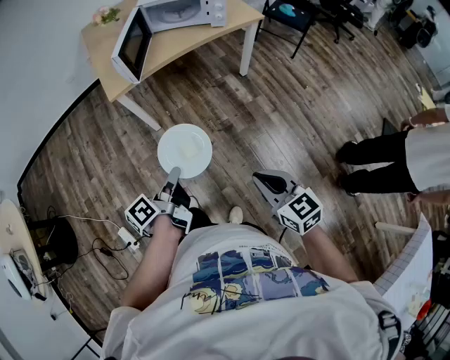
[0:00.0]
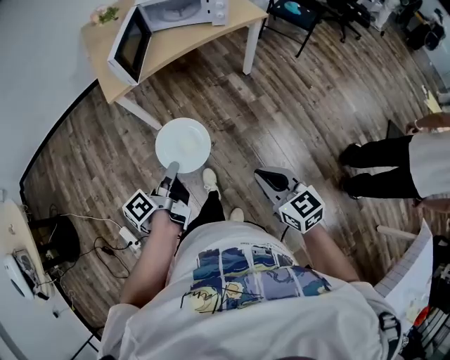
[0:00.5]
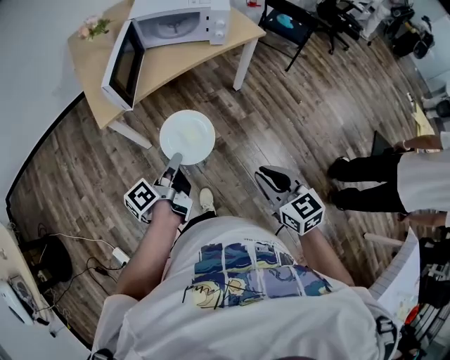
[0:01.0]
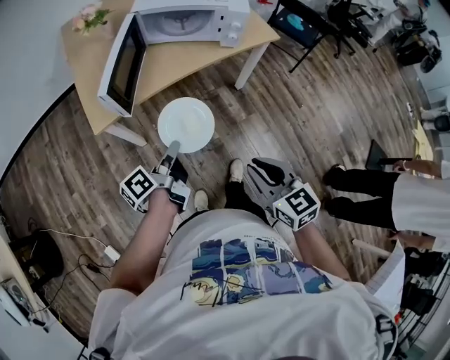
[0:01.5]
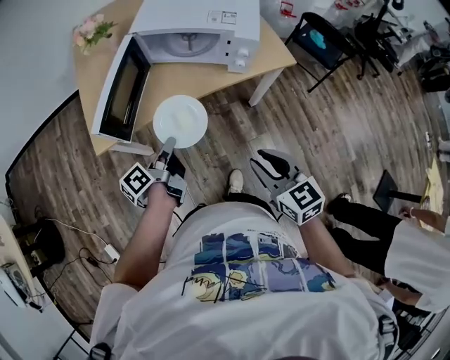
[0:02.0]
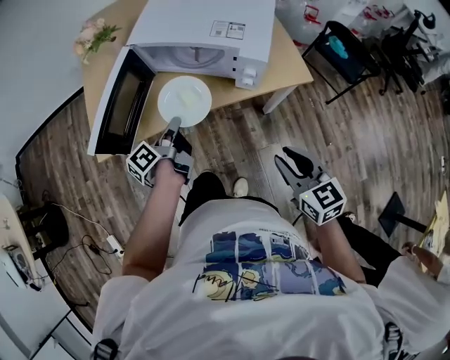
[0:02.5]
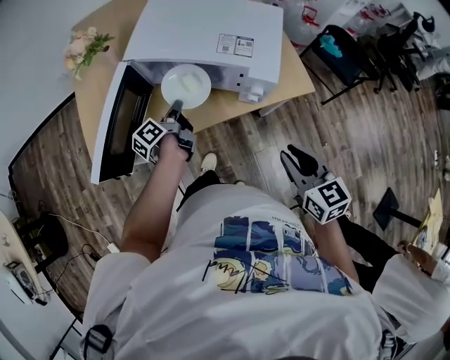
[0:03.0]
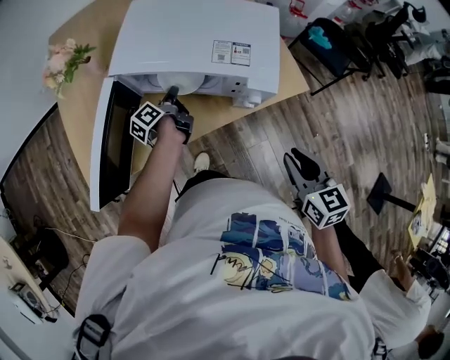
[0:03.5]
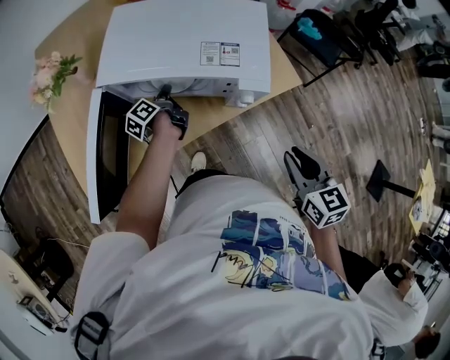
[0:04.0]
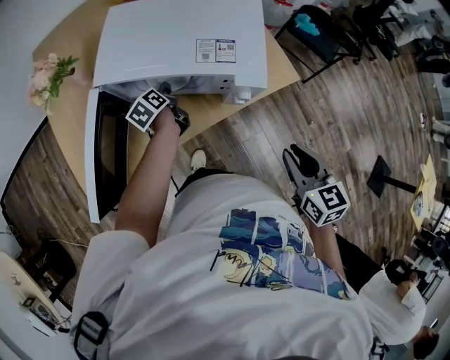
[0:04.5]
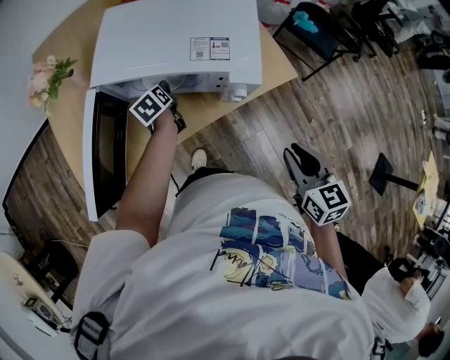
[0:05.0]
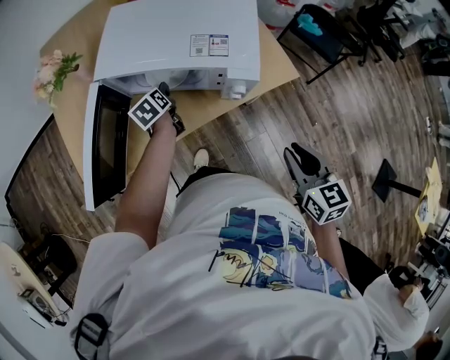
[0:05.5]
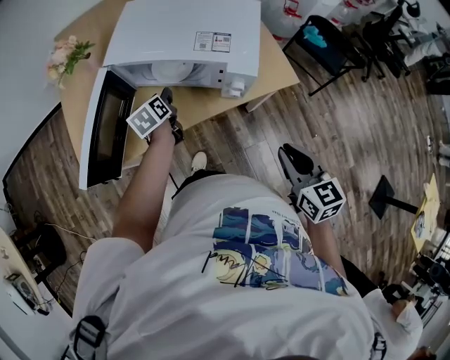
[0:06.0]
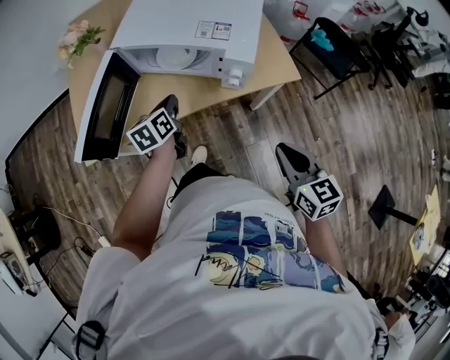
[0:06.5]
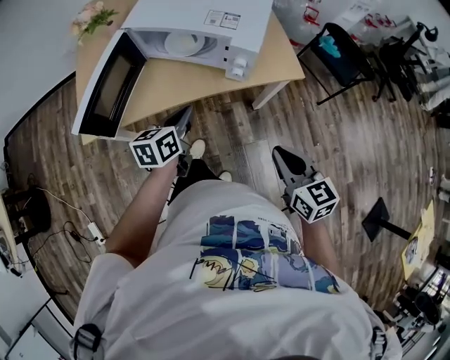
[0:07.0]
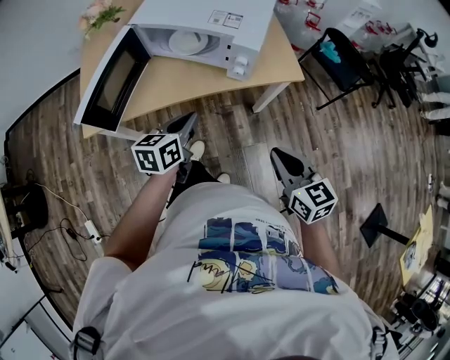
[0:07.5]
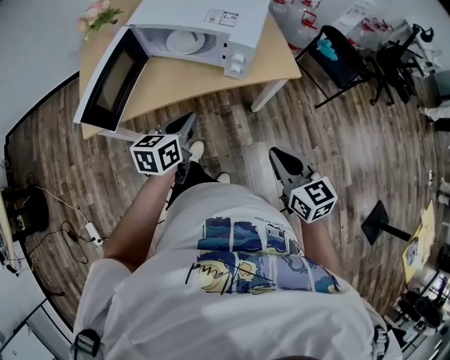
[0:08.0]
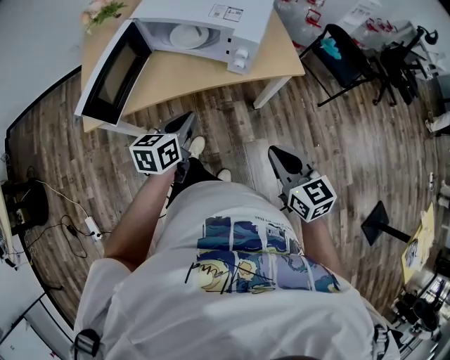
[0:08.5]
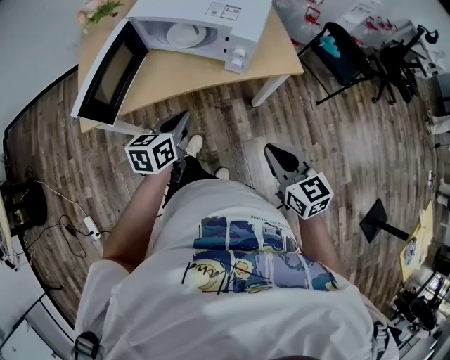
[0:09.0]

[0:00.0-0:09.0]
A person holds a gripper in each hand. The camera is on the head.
0:00.0 to 0:02.0: Both grippers are carried forward, approximately 50 cm. The right gripper opens up.
0:02.0 to 0:04.5: The right gripper travels forward and to the right by about 25 cm, and changes its angle by some 20 degrees, while the left gripper travels forward by roughly 40 cm, and turns by about 40 degrees.
0:04.5 to 0:07.0: The right gripper is displaced backward by some 10 cm. Meanwhile the left gripper shifts approximately 30 cm backward and upward, changes its angle by roughly 30 degrees, and opens and closes again.
0:07.0 to 0:09.0: The left gripper goes approximately 5 cm backward.

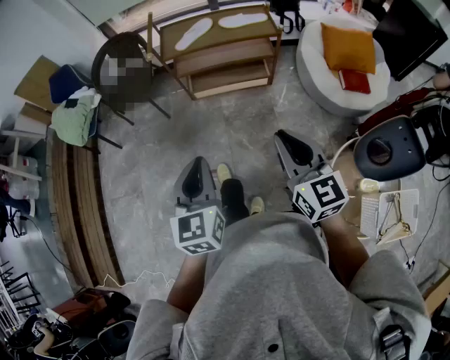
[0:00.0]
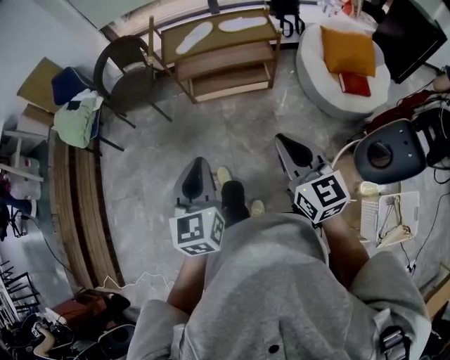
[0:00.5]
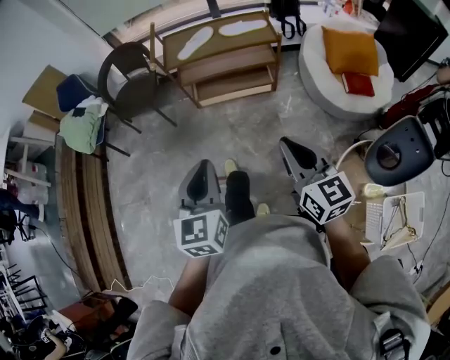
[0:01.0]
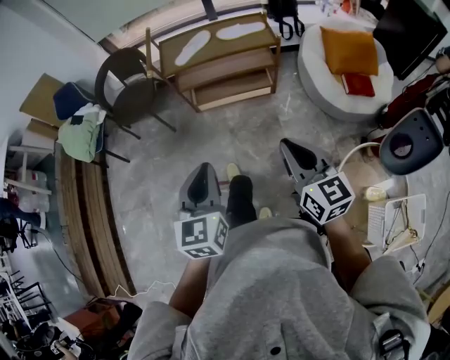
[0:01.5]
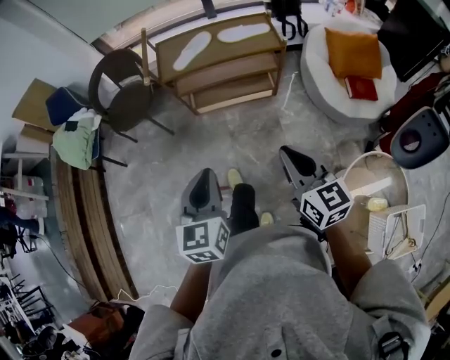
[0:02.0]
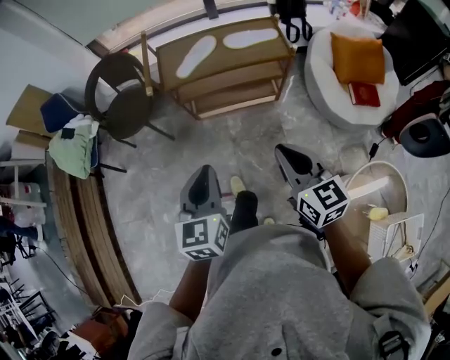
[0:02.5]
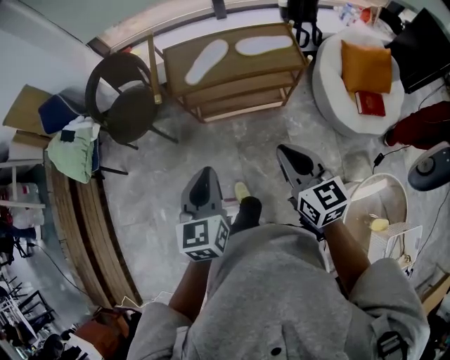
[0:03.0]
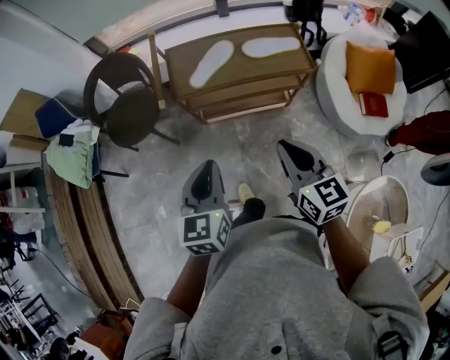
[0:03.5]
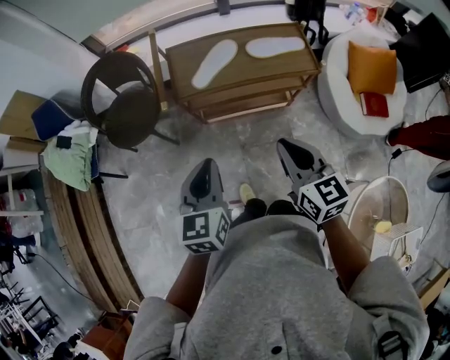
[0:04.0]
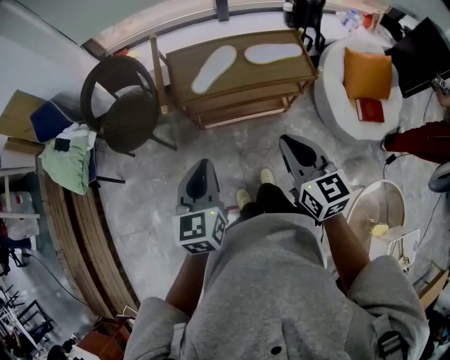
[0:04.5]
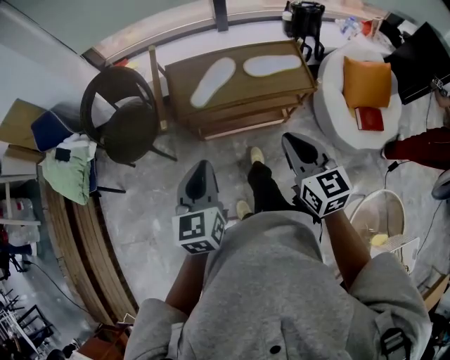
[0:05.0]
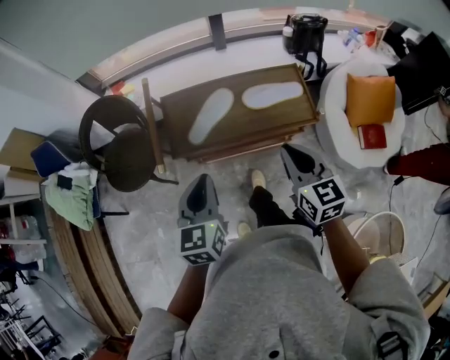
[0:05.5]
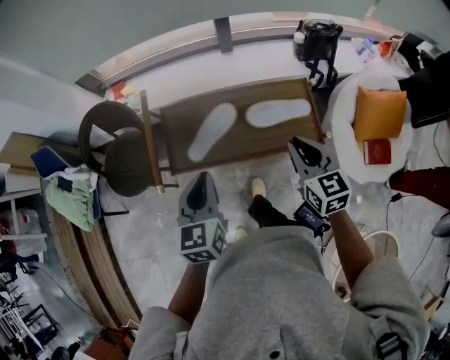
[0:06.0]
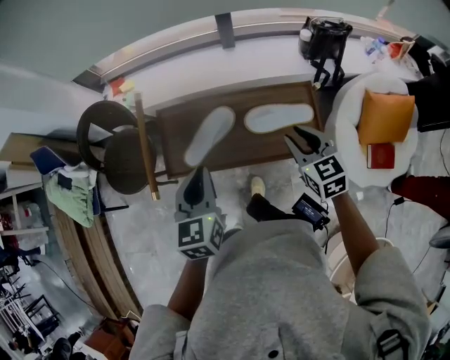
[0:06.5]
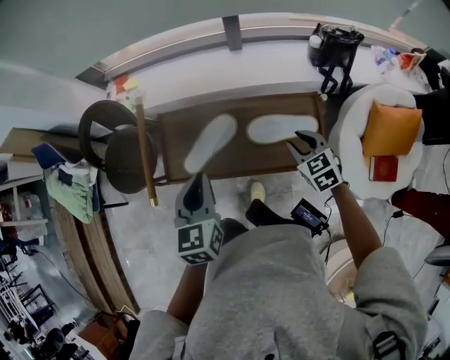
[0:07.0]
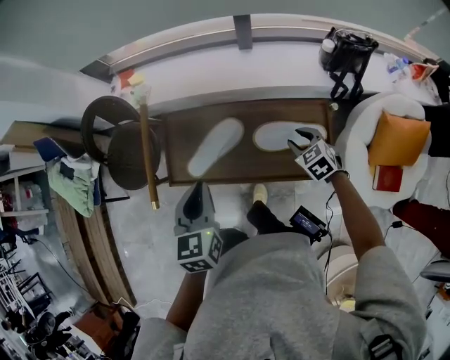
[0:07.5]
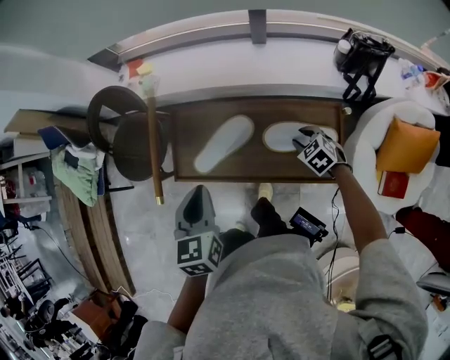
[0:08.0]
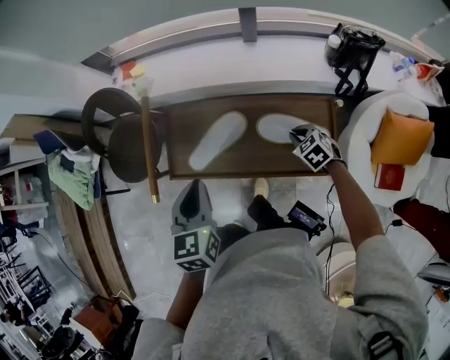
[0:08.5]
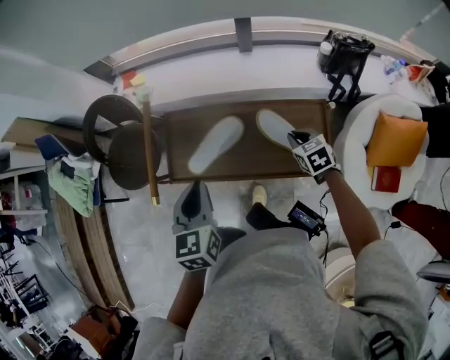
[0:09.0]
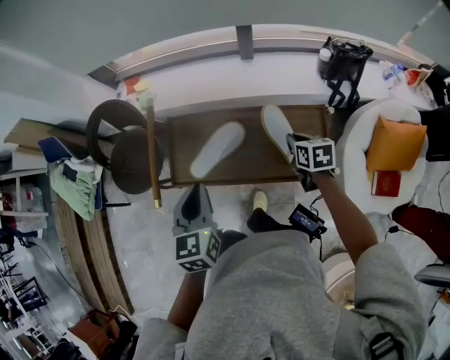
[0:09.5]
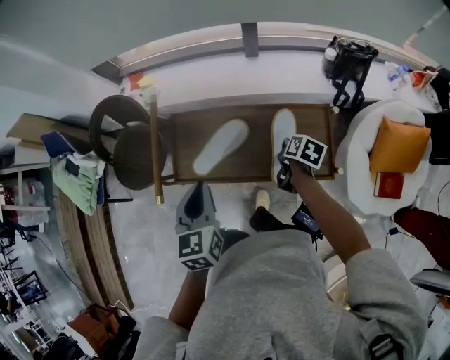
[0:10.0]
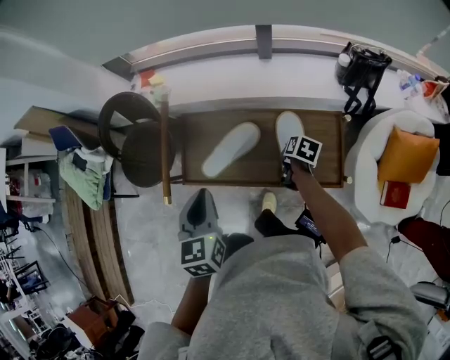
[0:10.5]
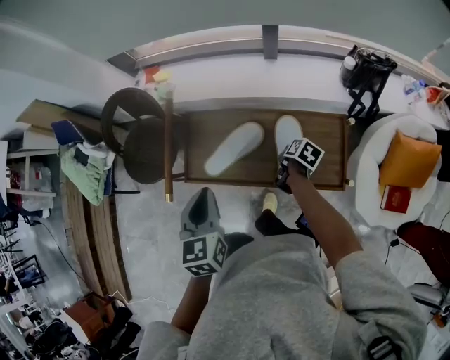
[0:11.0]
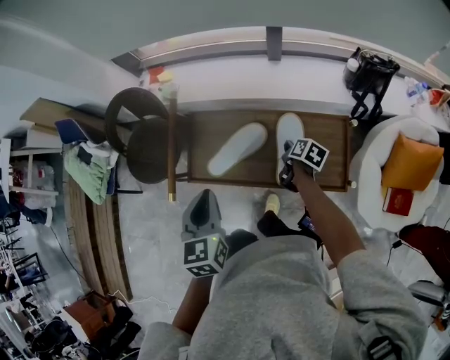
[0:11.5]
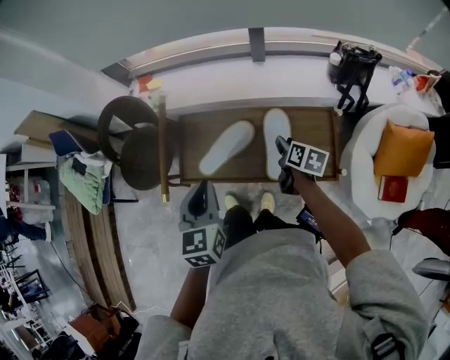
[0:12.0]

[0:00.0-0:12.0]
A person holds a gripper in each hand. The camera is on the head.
0:00.0 to 0:02.0: The grippers both shift forward by about 10 cm.
0:02.0 to 0:04.0: The grippers both shift forward by approximately 25 cm.
0:04.0 to 0:06.0: The right gripper travels forward and to the right by about 30 cm. The left gripper heads forward, covering approximately 25 cm.
0:06.0 to 0:08.0: The right gripper moves downward and forward, some 30 cm, tips its fingers downward by about 40 degrees, and opens, while the left gripper is displaced forward by about 5 cm.
0:08.0 to 0:10.0: The right gripper shifts some 5 cm upward, rolls clockwise, seen from behind, by about 80 degrees, and closes its fingers.
0:10.0 to 0:12.0: The right gripper ends up roughly 5 cm from where it was, and opens up.

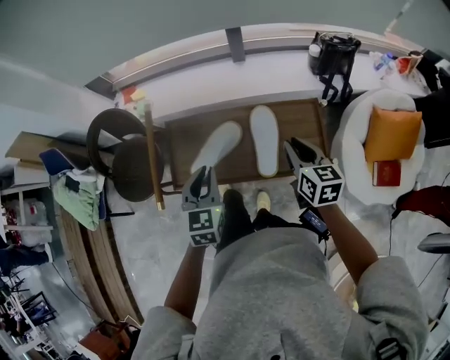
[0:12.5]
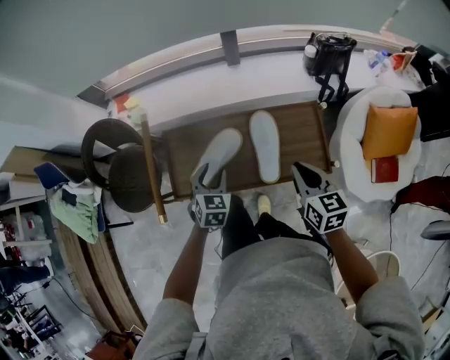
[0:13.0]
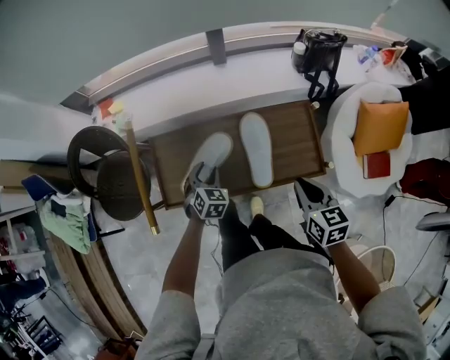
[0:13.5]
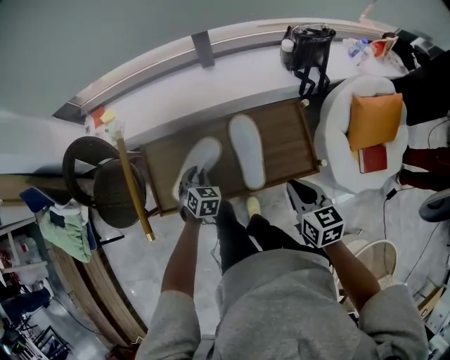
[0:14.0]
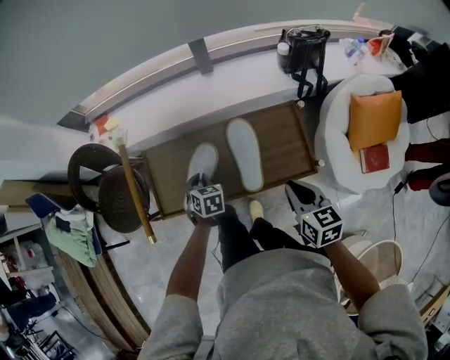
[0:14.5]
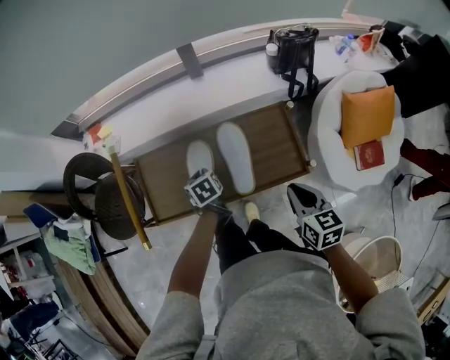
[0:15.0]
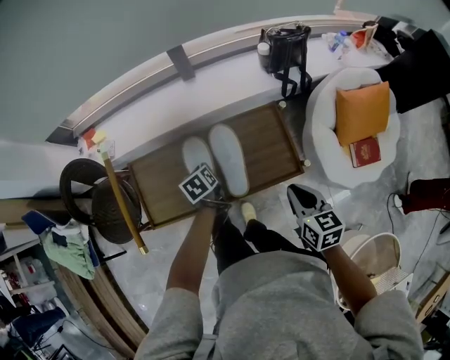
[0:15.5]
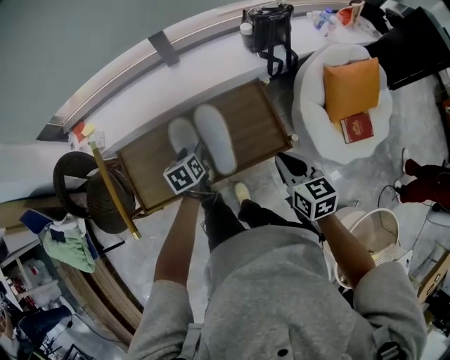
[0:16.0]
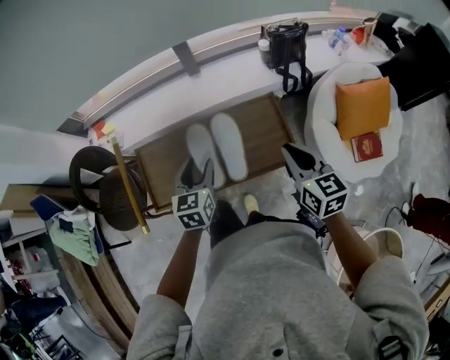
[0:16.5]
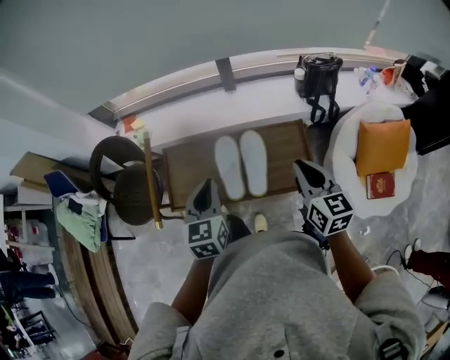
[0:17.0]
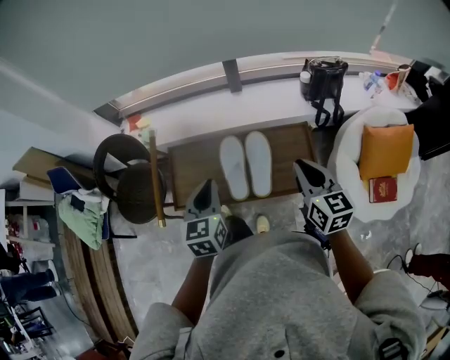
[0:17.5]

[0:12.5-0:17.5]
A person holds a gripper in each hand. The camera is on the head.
0:12.5 to 0:15.0: The left gripper travels downward and forward by some 20 cm, changes its angle by some 40 degrees, and opens, then closes once more, while the right gripper shifts some 10 cm backward.
0:15.0 to 0:17.5: The left gripper is displaced upward by roughly 25 cm, points its fingers about 30 degrees further upward, and opens, then closes once more. Meanwhile the right gripper shifts some 15 cm upward and forward.

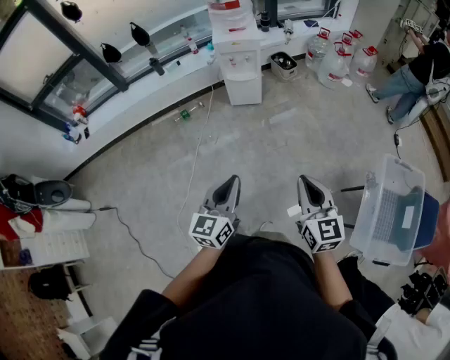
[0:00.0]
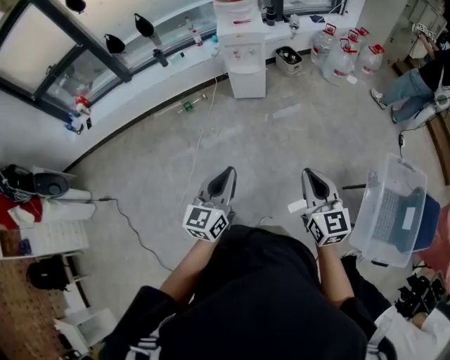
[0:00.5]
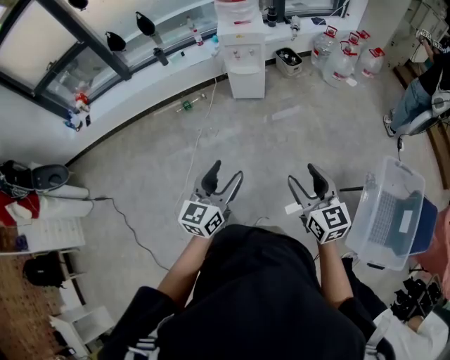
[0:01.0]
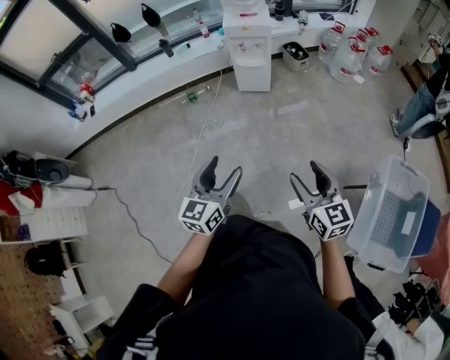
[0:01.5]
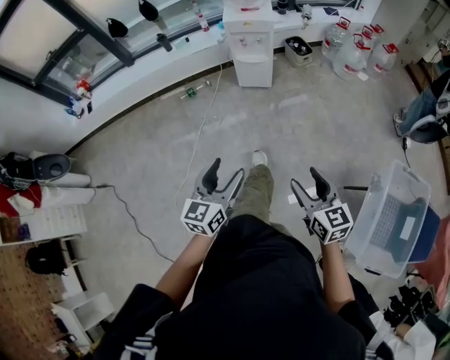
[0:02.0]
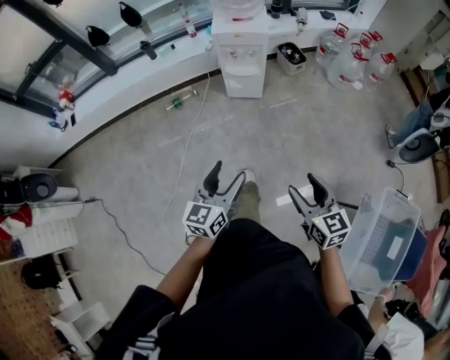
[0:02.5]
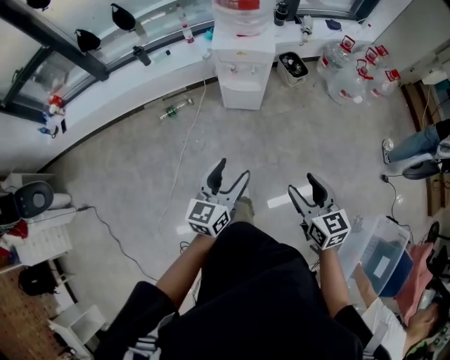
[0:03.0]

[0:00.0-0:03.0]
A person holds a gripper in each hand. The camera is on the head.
0:00.0 to 0:01.5: The right gripper opens. Meanwhile the left gripper opens up.
0:01.5 to 0:03.0: Both grippers travel together forward, approximately 35 cm.
